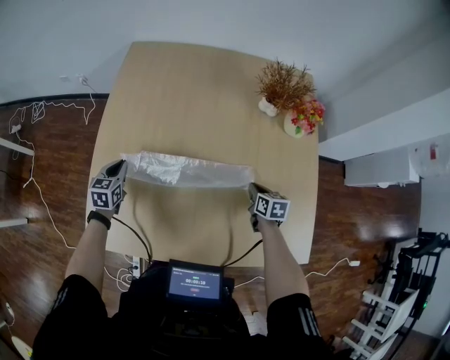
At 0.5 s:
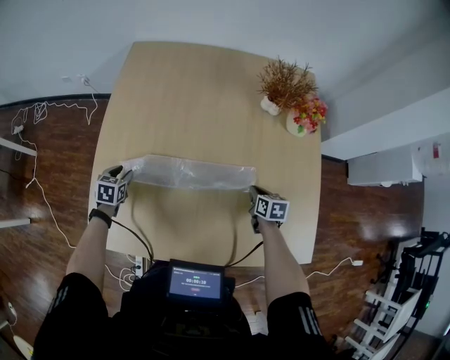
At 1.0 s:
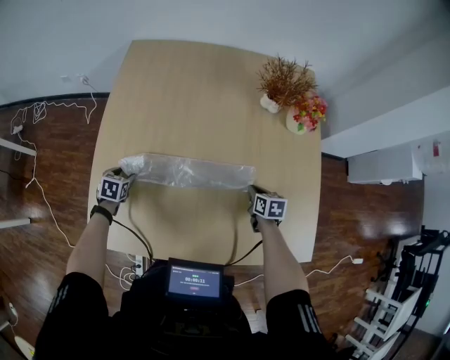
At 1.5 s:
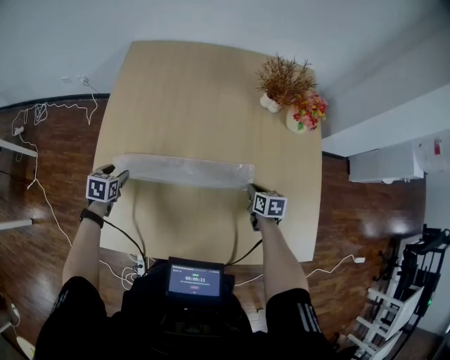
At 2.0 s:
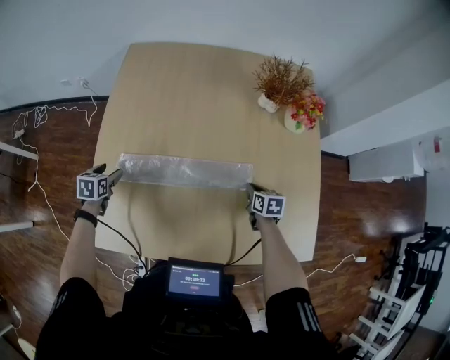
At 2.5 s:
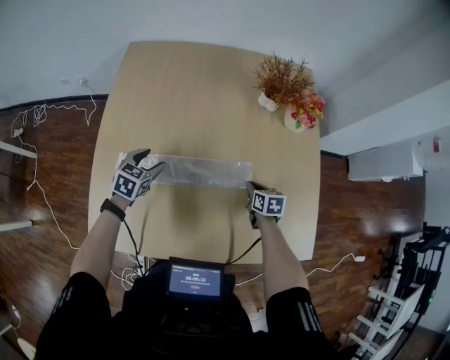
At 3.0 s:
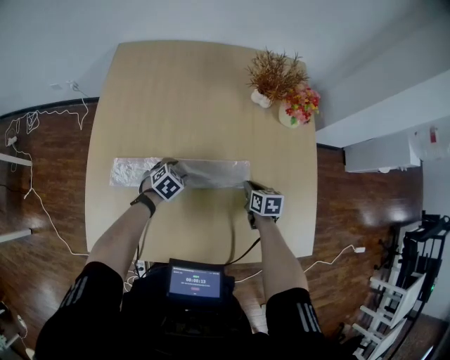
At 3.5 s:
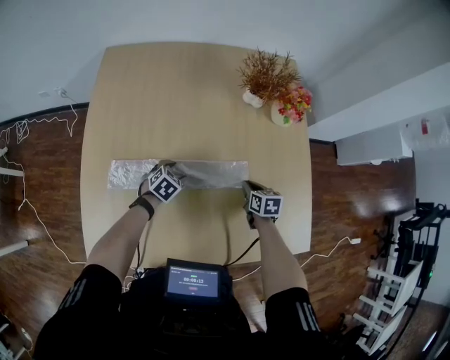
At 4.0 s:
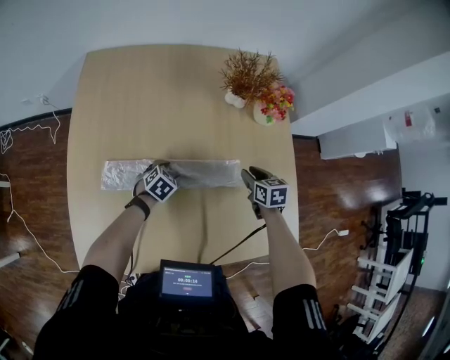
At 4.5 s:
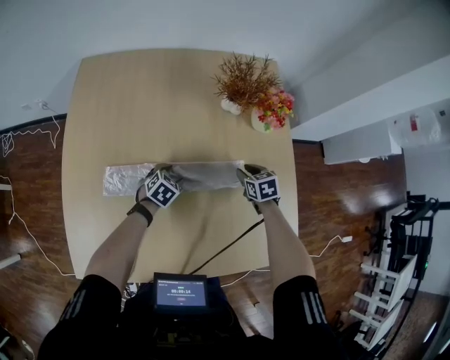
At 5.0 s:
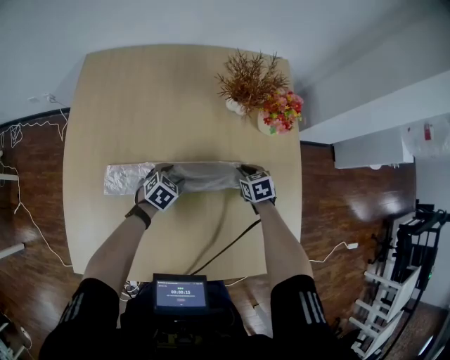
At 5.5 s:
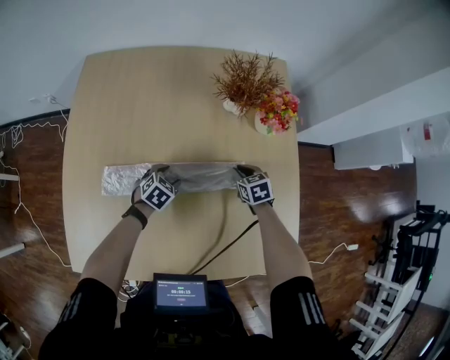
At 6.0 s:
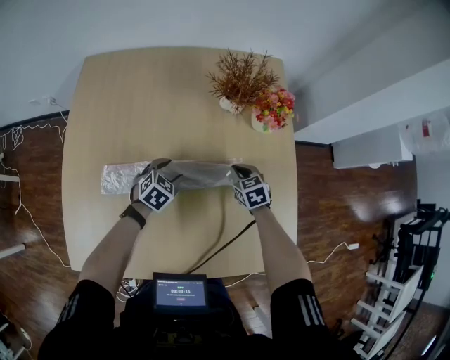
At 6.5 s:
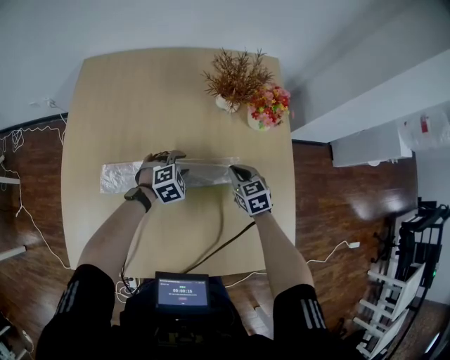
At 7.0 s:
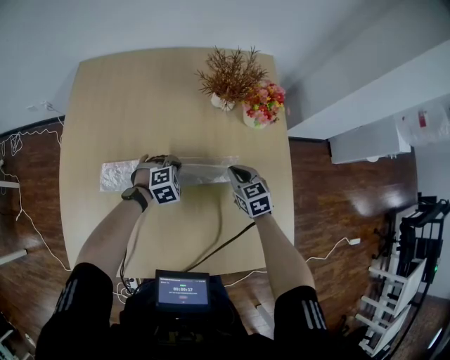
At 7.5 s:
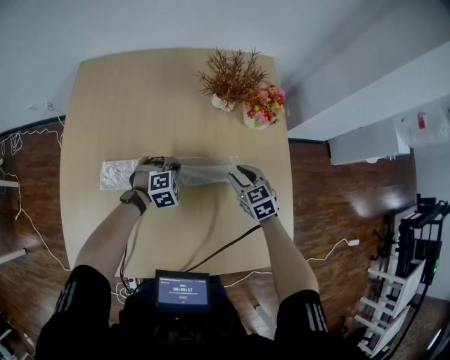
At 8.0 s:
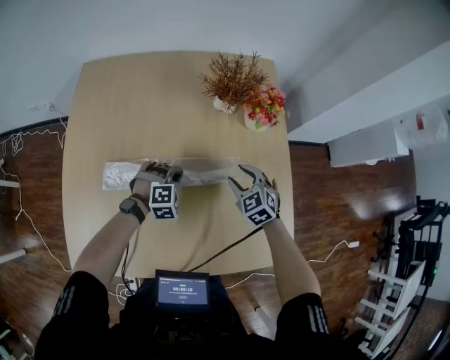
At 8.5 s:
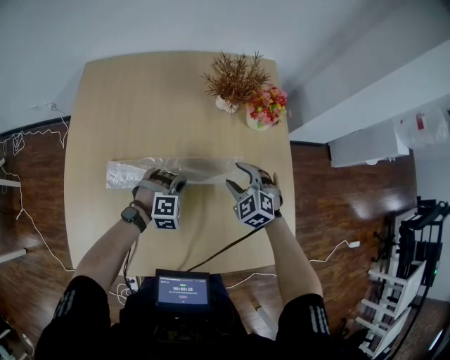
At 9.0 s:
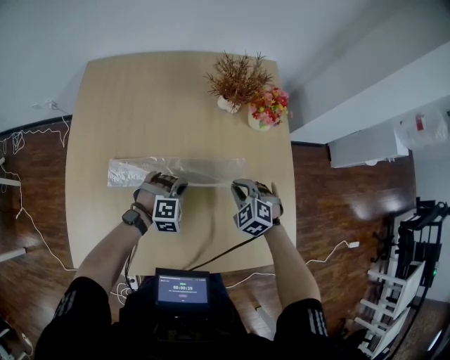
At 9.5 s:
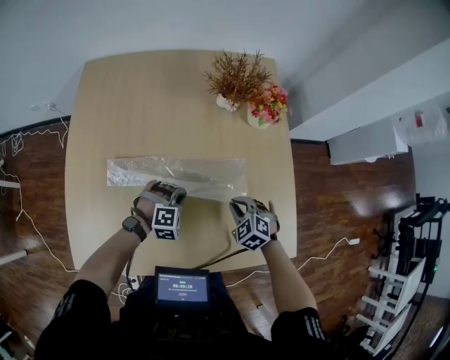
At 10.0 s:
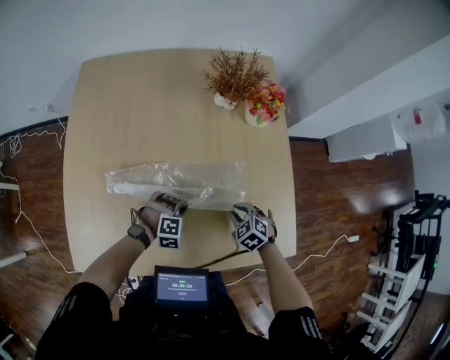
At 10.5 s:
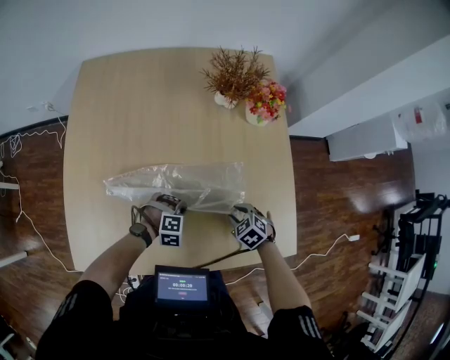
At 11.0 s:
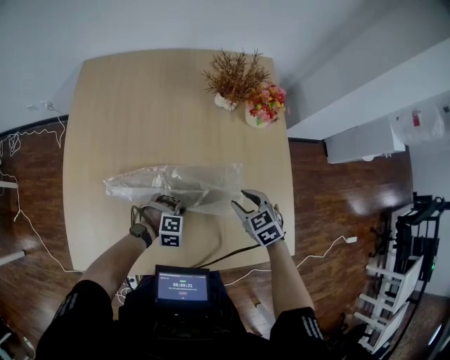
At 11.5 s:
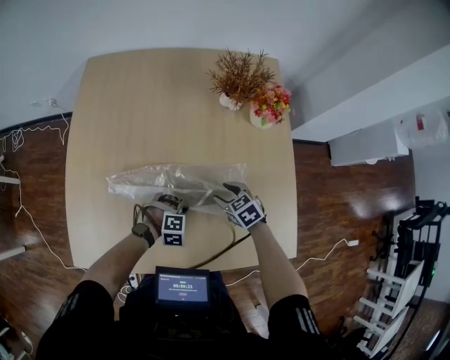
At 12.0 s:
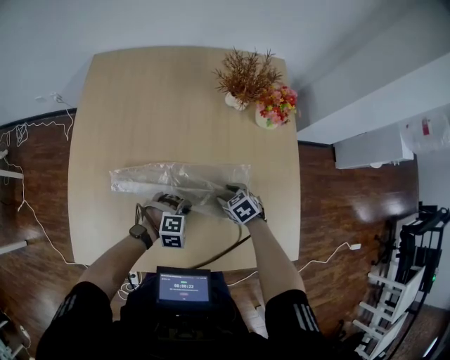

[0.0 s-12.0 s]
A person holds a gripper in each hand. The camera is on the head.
0.0 to 2.0 s: The left gripper goes about 5 cm to the left, moves roughly 10 cm downward and comes back, and opens its fingers.
2.0 to 4.0 s: The right gripper changes place by some 10 cm, and opens. Meanwhile the left gripper changes place by roughly 35 cm, and swivels about 50 degrees.
4.0 to 6.0 s: The left gripper is displaced upward by about 5 cm. The right gripper moves forward, approximately 5 cm, changes its angle by about 20 degrees, and closes its fingers.
6.0 to 8.0 s: The left gripper twists roughly 50 degrees clockwise, seen from behind, and closes its fingers, while the right gripper goes some 10 cm upward, swivels some 20 degrees, and opens up.
8.0 to 10.0 s: The left gripper travels backward by about 15 cm; the right gripper is displaced backward and downward by roughly 15 cm, turns by about 20 degrees, and closes its fingers.
10.0 to 12.0 s: The right gripper goes approximately 10 cm forward and to the left, goes upward and returns, about 10 cm each way, and opens up.

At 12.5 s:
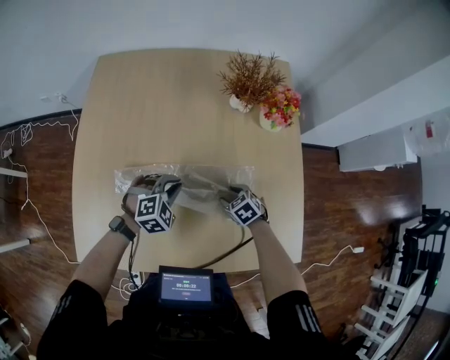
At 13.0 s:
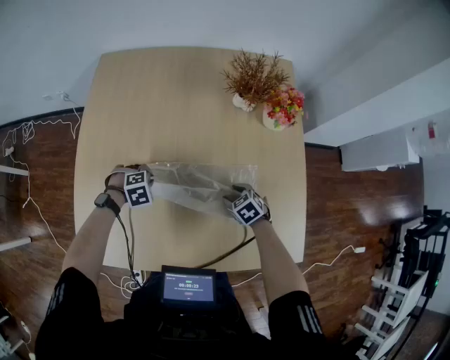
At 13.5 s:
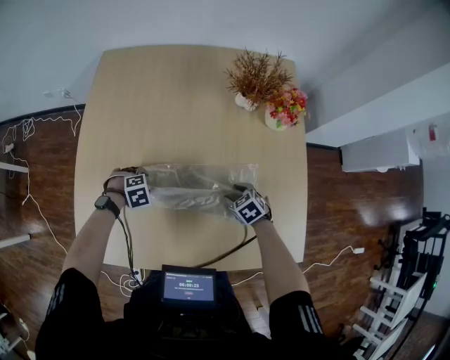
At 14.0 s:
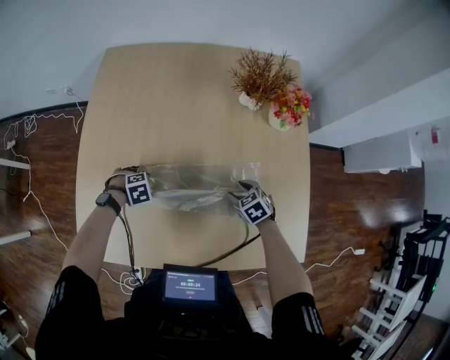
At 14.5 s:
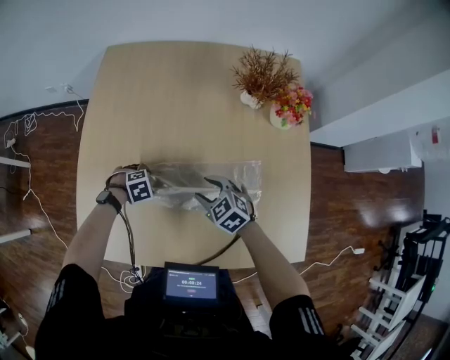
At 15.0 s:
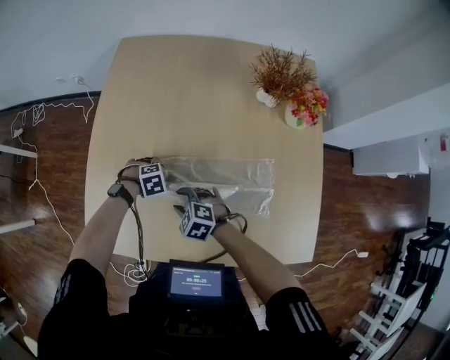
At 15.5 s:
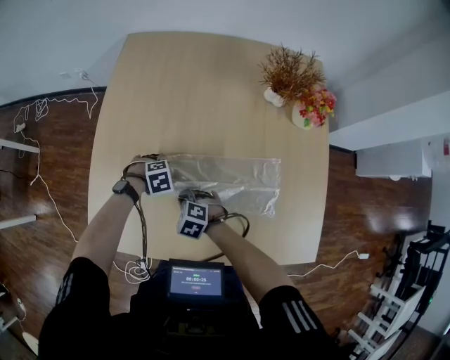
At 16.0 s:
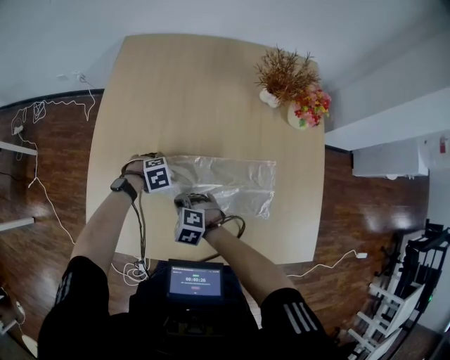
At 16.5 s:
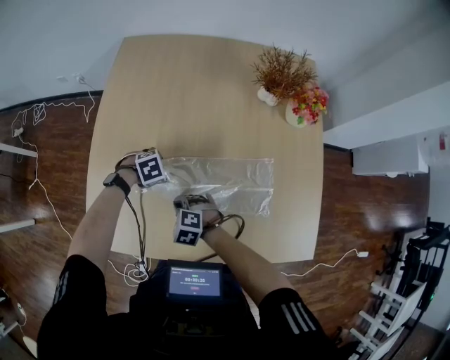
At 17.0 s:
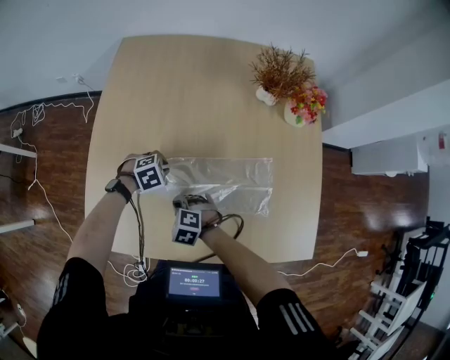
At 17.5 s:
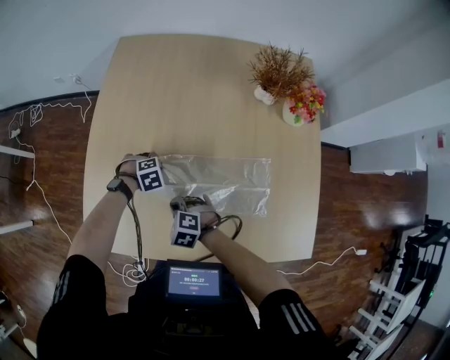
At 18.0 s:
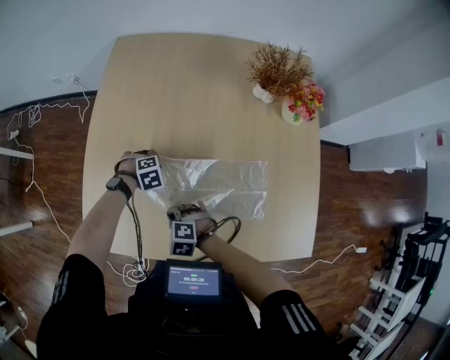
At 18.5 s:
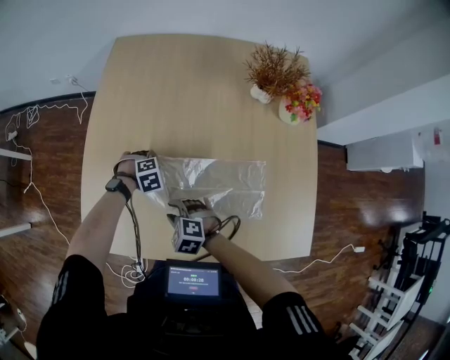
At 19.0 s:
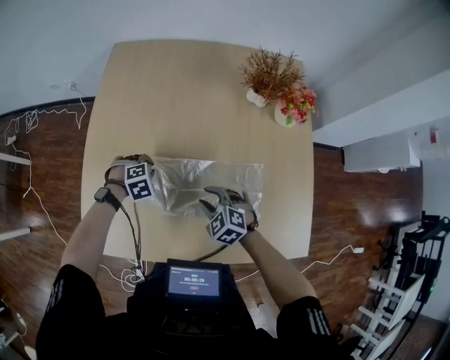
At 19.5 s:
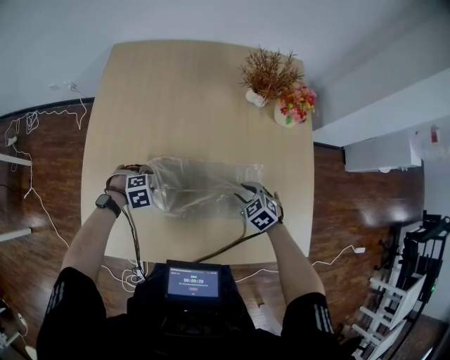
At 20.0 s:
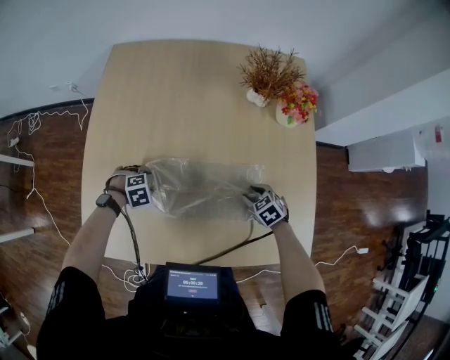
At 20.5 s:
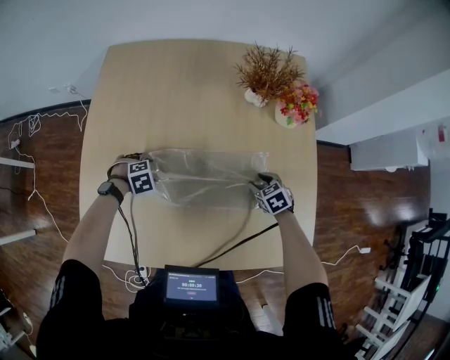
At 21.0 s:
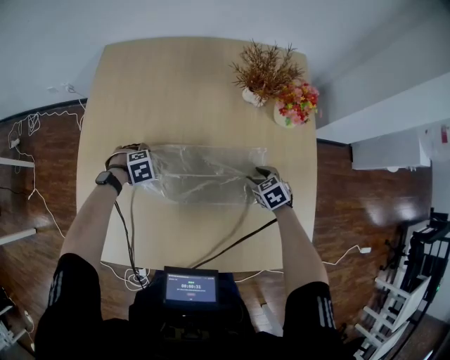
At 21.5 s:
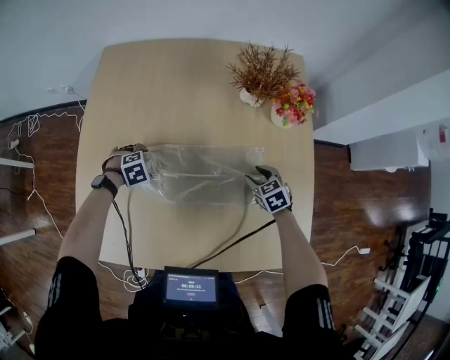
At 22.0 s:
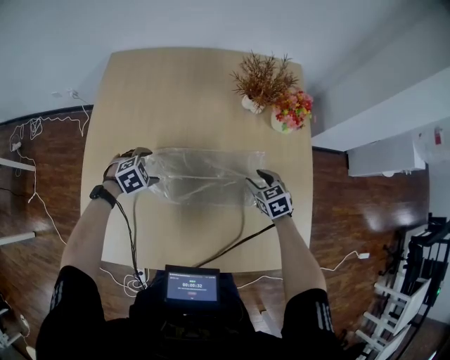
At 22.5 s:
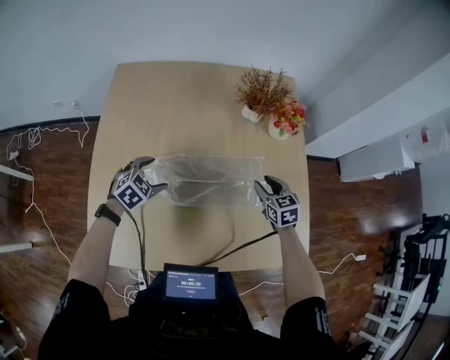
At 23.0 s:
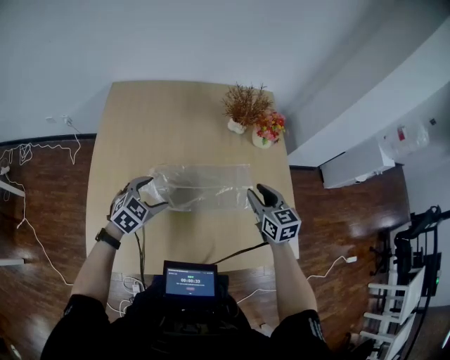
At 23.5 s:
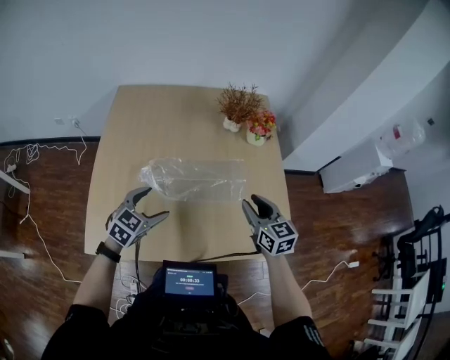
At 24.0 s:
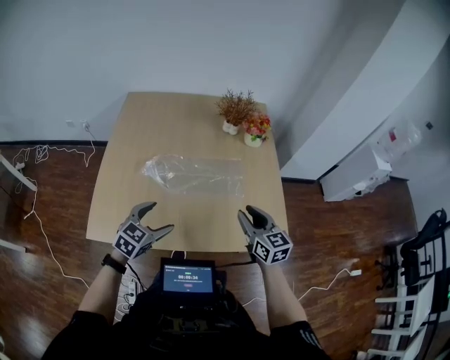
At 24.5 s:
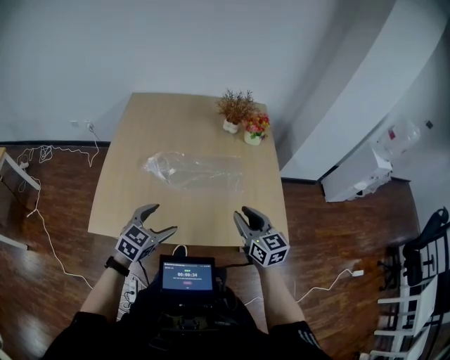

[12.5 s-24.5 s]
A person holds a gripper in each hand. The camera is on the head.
12.5 to 14.5 s: The left gripper moves roughly 20 cm, swivels roughly 40 degrees, and opens up, while the right gripper shifts by roughly 15 cm, and rotates roughly 20 degrees.
14.5 to 16.5 s: The left gripper moves approximately 5 cm. Meanwhile the right gripper ends up about 20 cm from where it was, changes its angle by about 30 degrees, and closes up.
16.5 to 18.5 s: The right gripper opens up, while the left gripper closes up.
18.5 to 20.5 s: The left gripper opens up. The right gripper changes place by some 35 cm, and rotates around the line of its fingers by some 40 degrees, clockwise from behind.
20.5 to 22.5 s: Both grippers move upward, some 15 cm. The right gripper swivels some 30 degrees. Meanwhile the left gripper tilts its fingers approximately 30 degrees upward.
22.5 to 24.5 s: The right gripper goes some 35 cm backward and upward, and turns by approximately 30 degrees. The left gripper shifts some 35 cm backward, to the right and upward, and turns by some 30 degrees.

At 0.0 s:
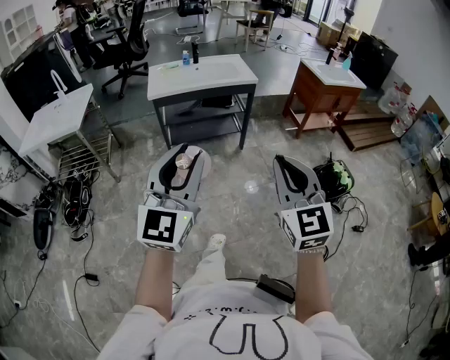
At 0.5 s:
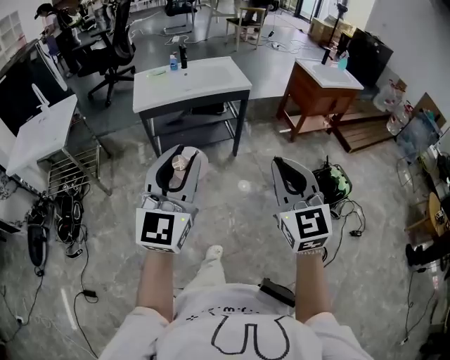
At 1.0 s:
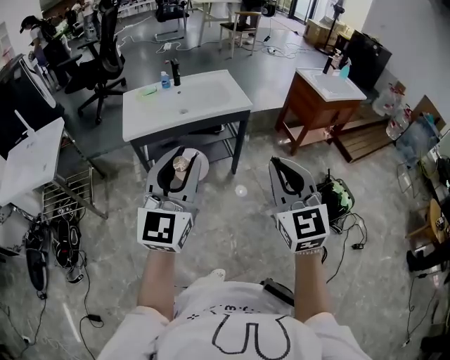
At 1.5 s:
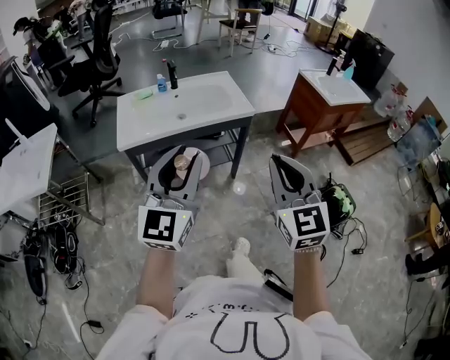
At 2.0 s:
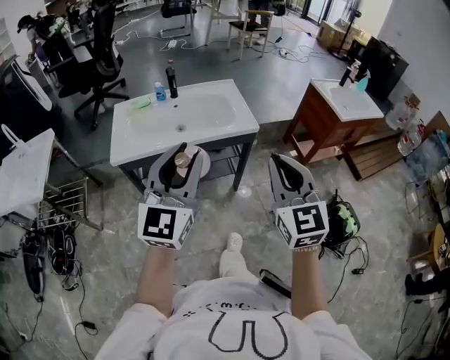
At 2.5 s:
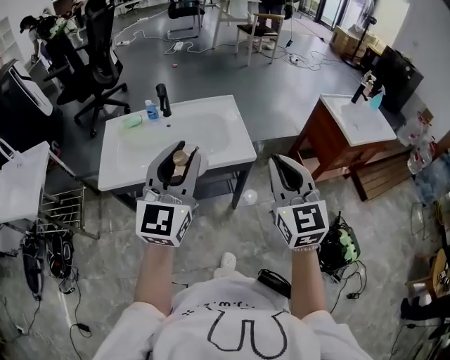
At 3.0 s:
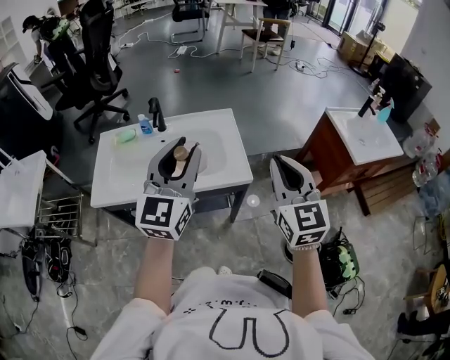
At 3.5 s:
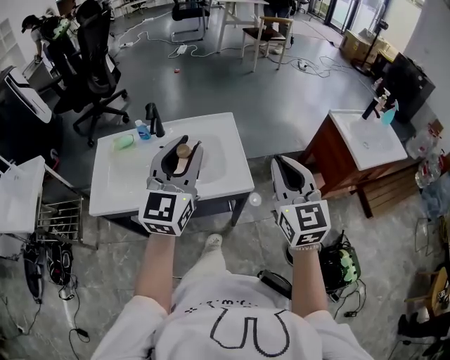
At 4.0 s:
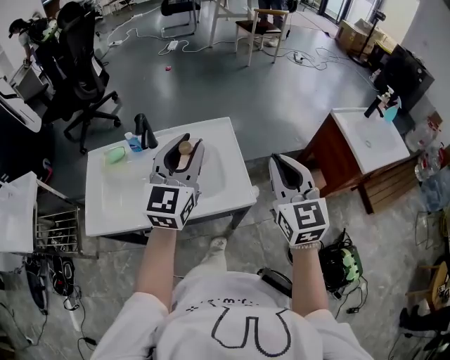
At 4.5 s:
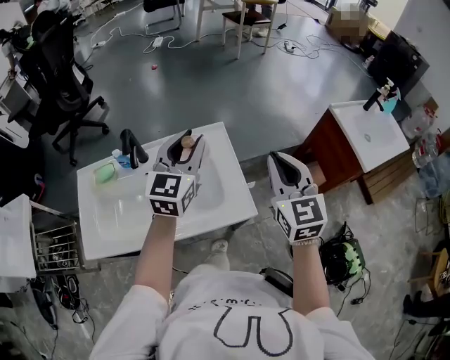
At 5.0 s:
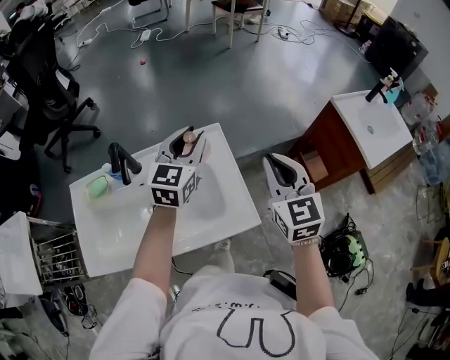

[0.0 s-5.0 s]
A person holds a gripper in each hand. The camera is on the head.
0.0 to 2.5 s: Both grippers are carried forward, some 70 cm.
2.5 to 5.0 s: The grippers both shift forward by about 40 cm. The left gripper rotates about 20 degrees.
